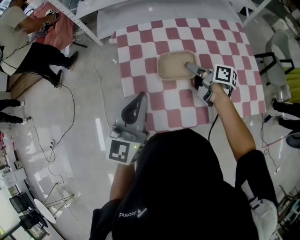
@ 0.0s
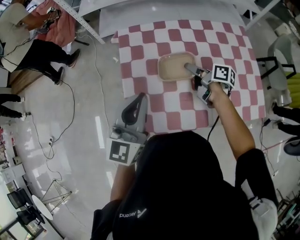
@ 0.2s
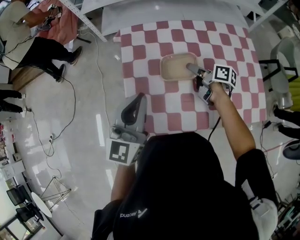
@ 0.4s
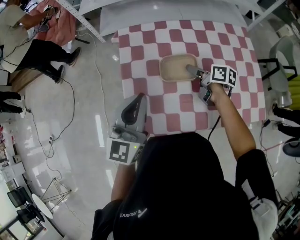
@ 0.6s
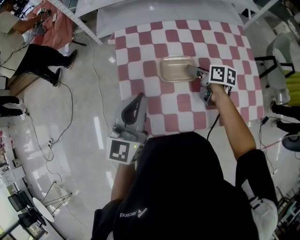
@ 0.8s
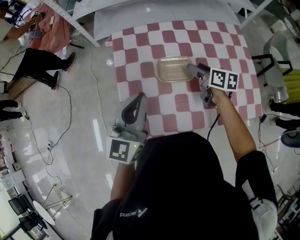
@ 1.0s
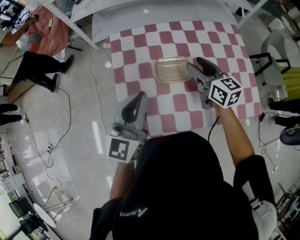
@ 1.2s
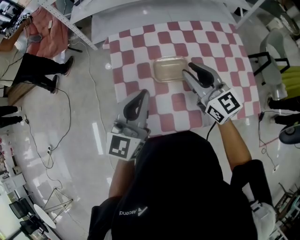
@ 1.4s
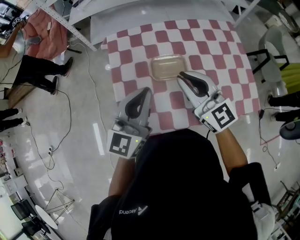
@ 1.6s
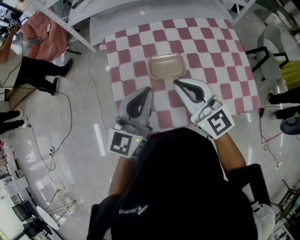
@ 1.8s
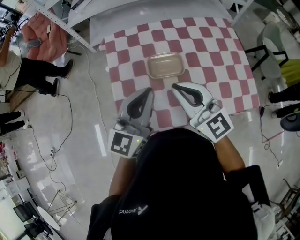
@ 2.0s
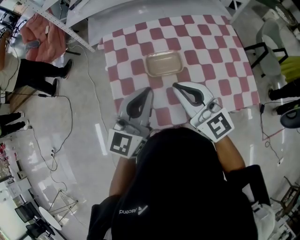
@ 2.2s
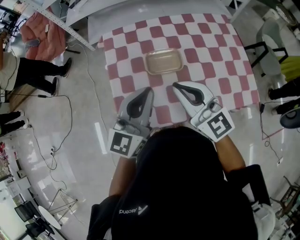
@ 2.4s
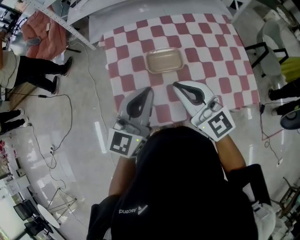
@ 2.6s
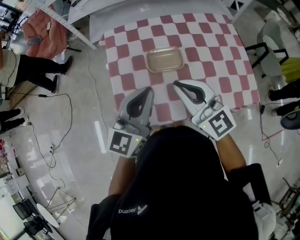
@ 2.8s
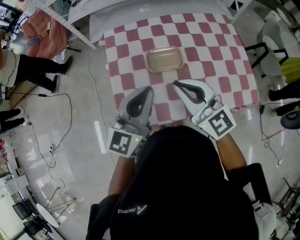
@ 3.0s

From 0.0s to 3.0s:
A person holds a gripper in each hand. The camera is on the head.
From 0.0s to 1.6s: The right gripper travels upward and backward by some 20 cm, rotates around the line of its fingers by approximately 70 degrees, counterclockwise from behind, and closes up, while the left gripper shifts about 5 cm to the right.
From 1.6s to 3.0s: The right gripper moves backward, some 5 cm.

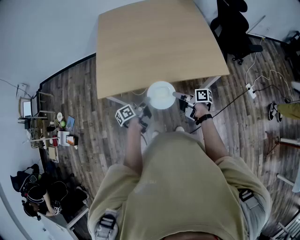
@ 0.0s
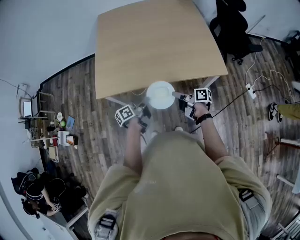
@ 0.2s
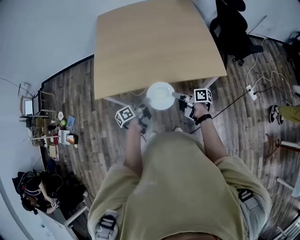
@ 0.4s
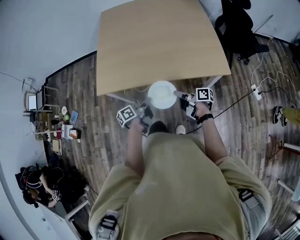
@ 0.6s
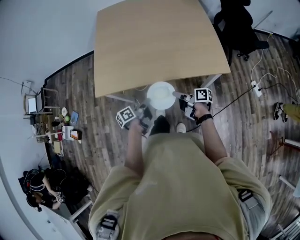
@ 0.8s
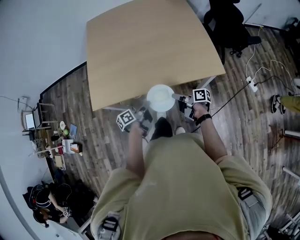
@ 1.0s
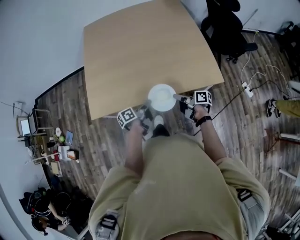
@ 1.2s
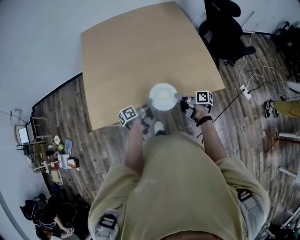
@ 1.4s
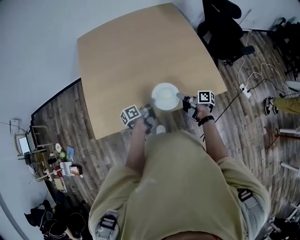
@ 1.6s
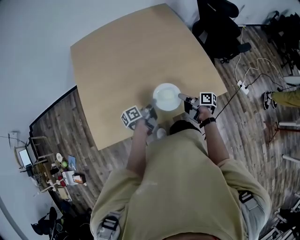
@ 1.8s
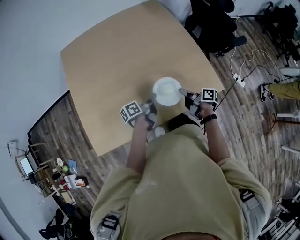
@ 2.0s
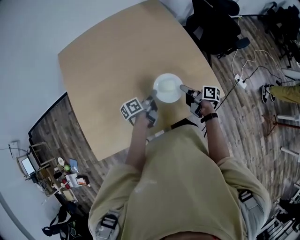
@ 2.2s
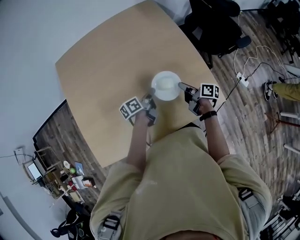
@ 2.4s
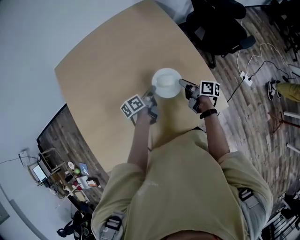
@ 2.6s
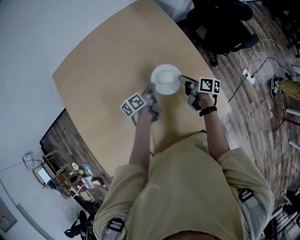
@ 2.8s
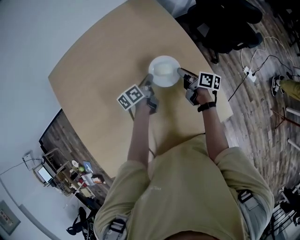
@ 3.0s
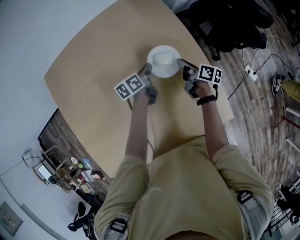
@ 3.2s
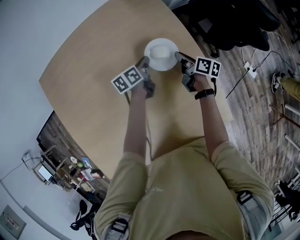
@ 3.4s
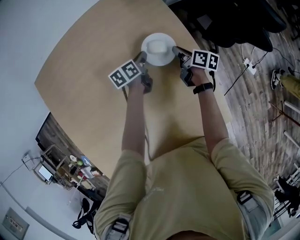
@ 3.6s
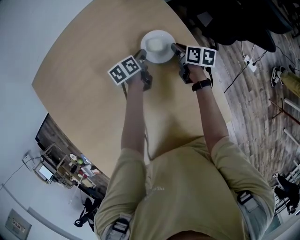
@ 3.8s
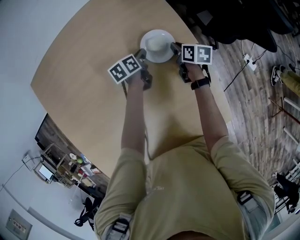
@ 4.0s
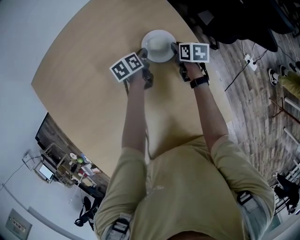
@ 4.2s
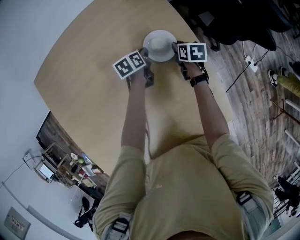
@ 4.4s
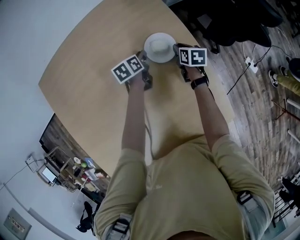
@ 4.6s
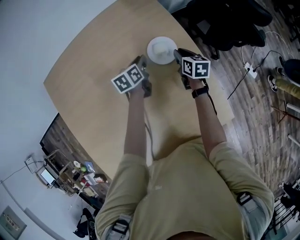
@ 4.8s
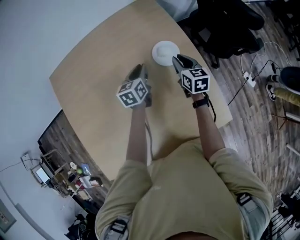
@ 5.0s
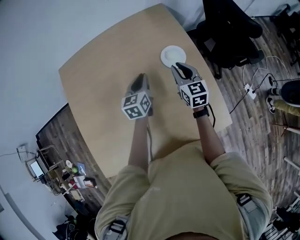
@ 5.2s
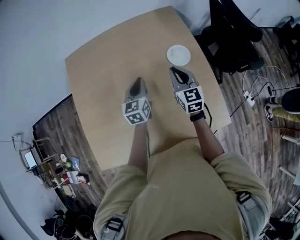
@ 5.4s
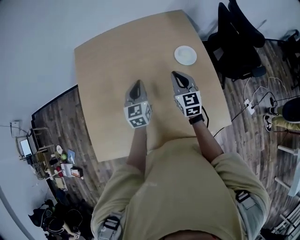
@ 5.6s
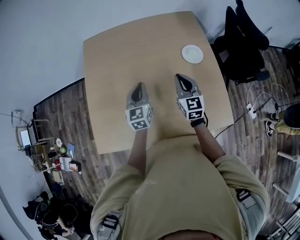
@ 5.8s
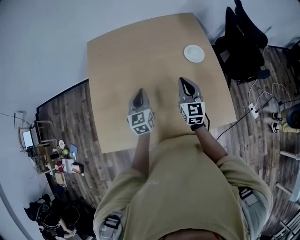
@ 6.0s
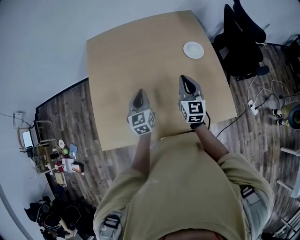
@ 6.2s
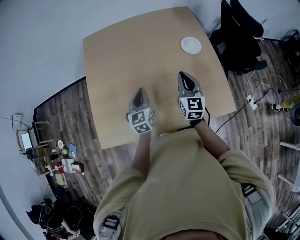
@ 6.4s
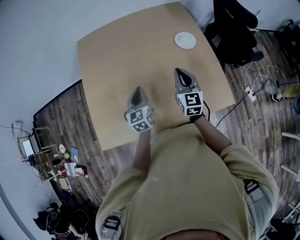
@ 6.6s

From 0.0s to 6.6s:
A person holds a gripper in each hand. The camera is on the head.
From 0.0s to 1.6s: The grippers both shift forward and to the right by about 20 cm.
From 1.6s to 3.2s: Both grippers are carried forward, about 50 cm. The right gripper swivels approximately 20 degrees. The left gripper rotates roughly 30 degrees.
From 3.2s to 5.0s: The two grippers go some 5 cm upward. The left gripper swivels roughly 30 degrees. The right gripper rolls counterclockwise, seen from behind, by approximately 40 degrees.
From 5.0s to 6.6s: The left gripper goes some 40 cm backward and to the left, and changes its angle by about 30 degrees. Meanwhile the right gripper travels backward, to the left and upward by about 35 cm, and rotates approximately 30 degrees.

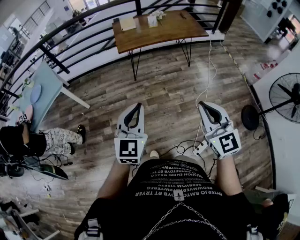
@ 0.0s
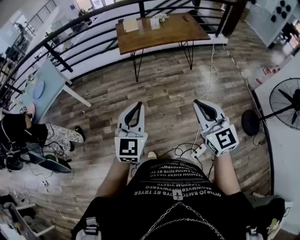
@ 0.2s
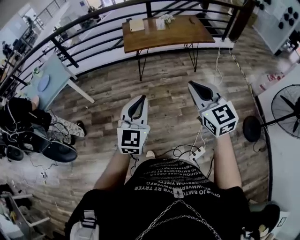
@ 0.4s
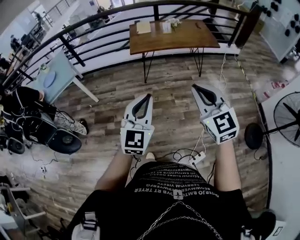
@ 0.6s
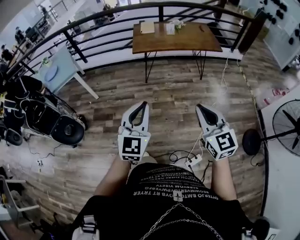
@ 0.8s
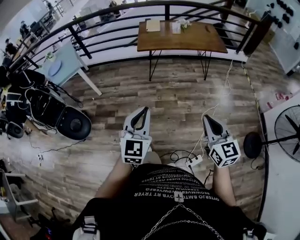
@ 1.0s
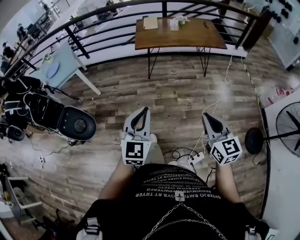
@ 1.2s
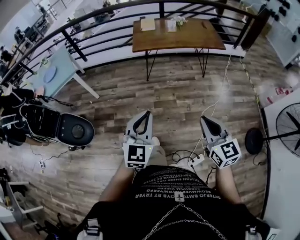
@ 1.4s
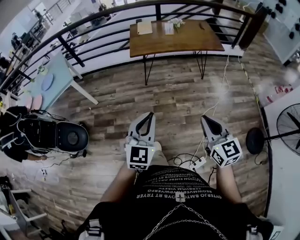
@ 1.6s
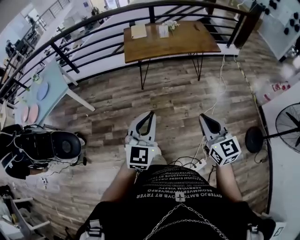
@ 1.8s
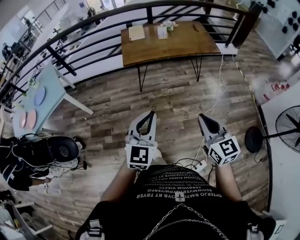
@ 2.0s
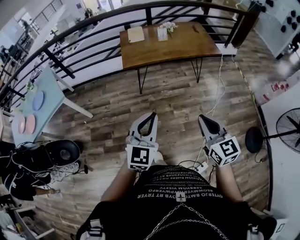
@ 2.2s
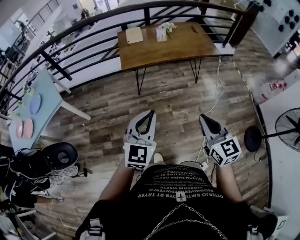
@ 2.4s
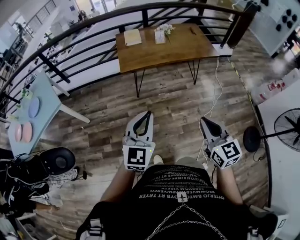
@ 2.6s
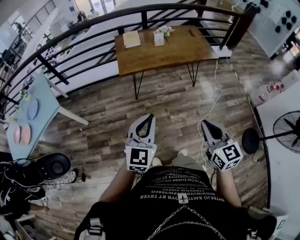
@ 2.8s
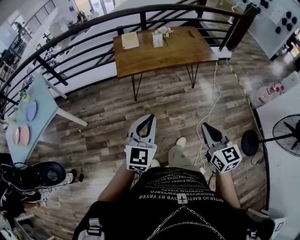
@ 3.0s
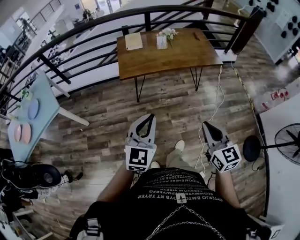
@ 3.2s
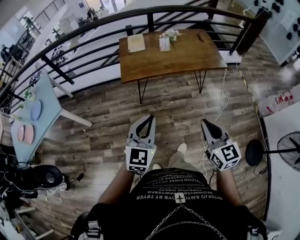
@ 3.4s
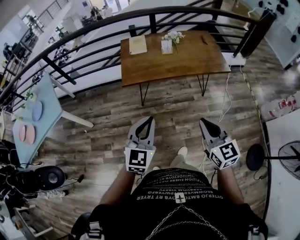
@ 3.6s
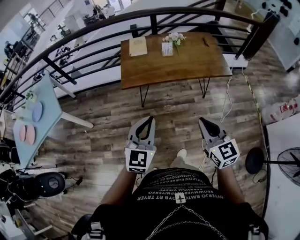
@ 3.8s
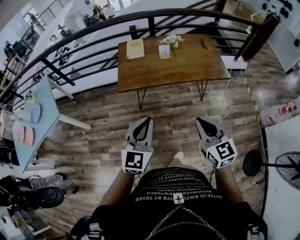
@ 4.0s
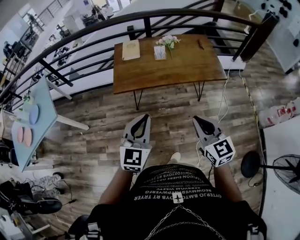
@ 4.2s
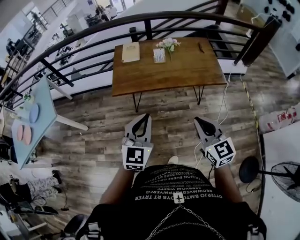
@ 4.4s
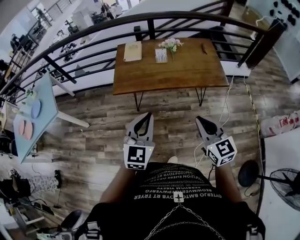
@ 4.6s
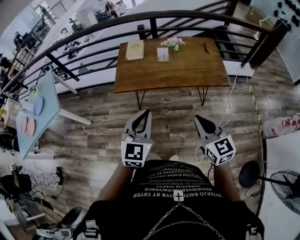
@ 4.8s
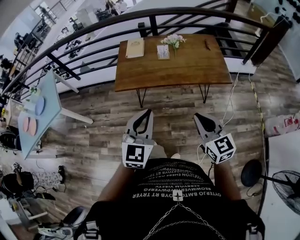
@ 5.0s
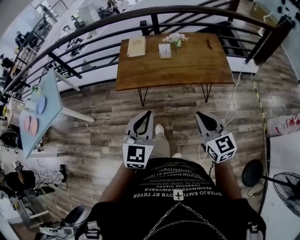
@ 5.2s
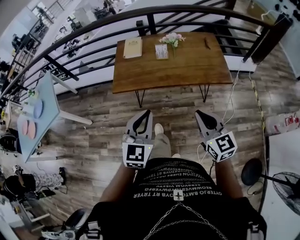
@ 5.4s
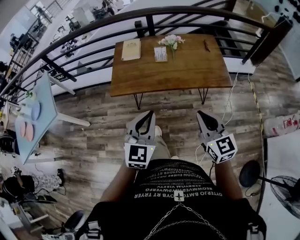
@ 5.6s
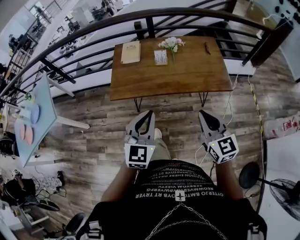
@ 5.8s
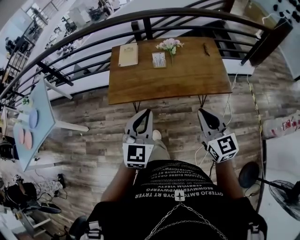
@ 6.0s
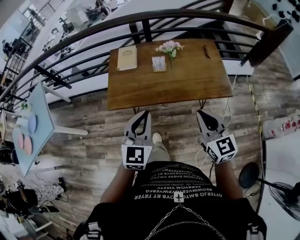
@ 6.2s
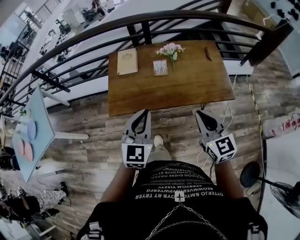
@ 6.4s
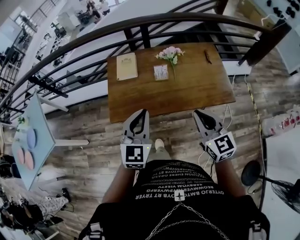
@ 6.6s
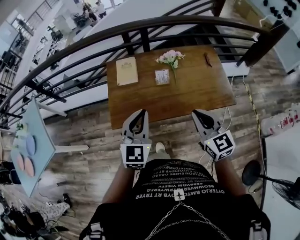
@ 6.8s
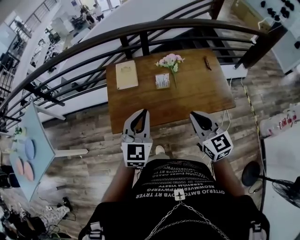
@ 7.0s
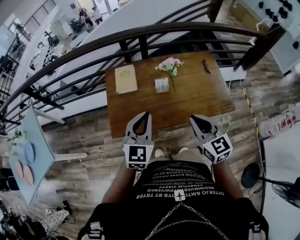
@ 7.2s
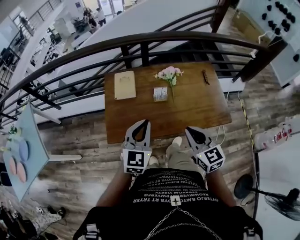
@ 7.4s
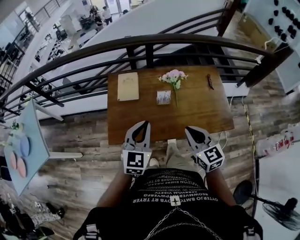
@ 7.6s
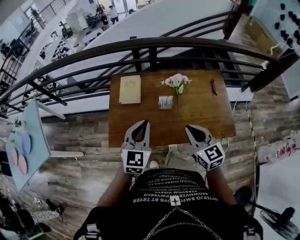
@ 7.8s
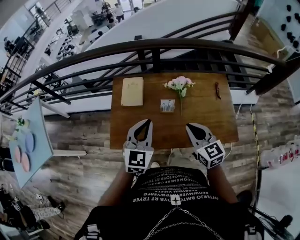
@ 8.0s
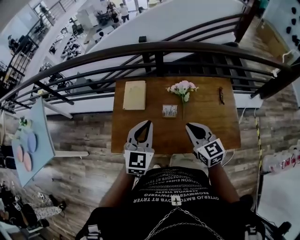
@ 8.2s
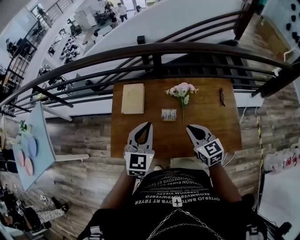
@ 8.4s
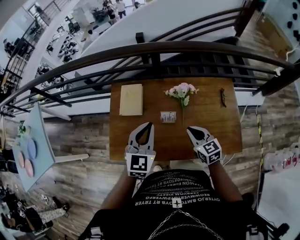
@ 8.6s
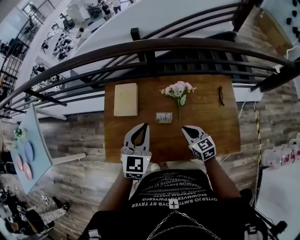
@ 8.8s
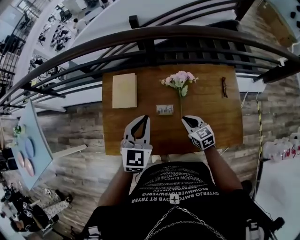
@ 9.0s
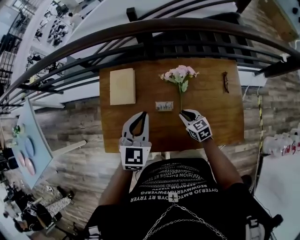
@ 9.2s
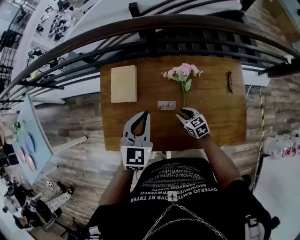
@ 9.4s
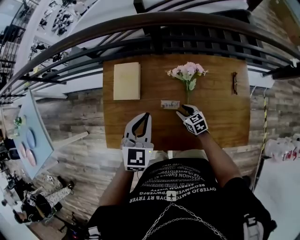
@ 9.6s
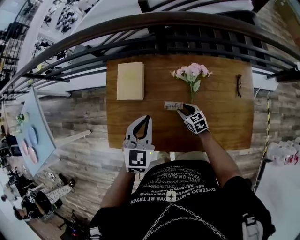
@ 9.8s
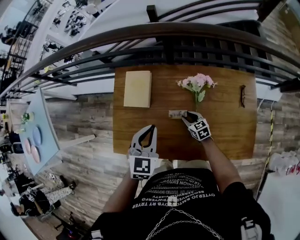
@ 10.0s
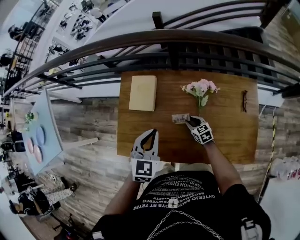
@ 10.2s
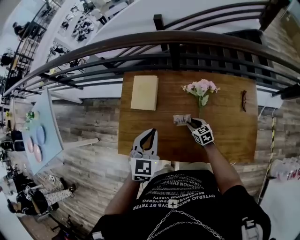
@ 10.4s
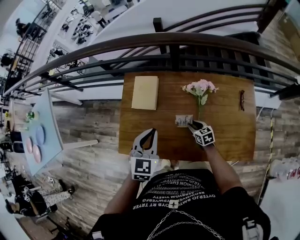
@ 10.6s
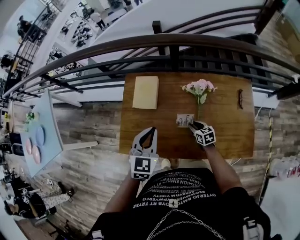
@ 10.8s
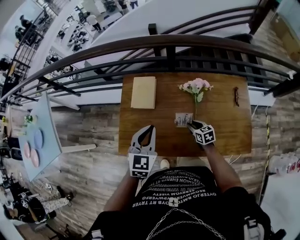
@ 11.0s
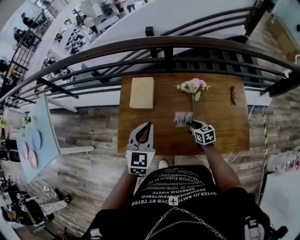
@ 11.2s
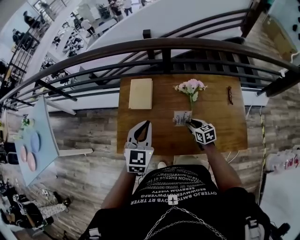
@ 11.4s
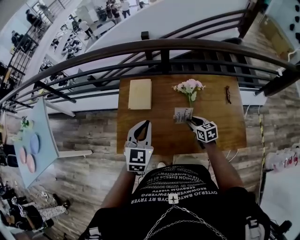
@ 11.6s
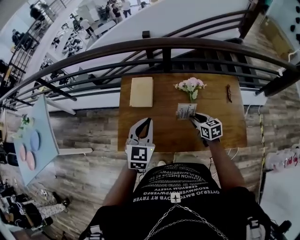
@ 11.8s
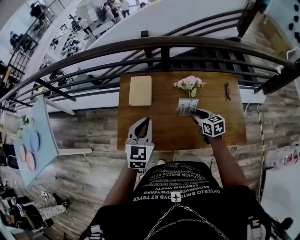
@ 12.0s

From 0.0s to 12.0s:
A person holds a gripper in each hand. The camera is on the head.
From 0.0s to 1.6s: The grippers both shift to the right by roughly 10 cm.
From 1.6s to 3.0s: The two grippers go some 20 cm forward.
From 3.0s to 4.4s: Both grippers travel together forward and to the right, about 25 cm.
From 4.4s to 6.0s: The two grippers go roughly 15 cm forward and to the right.
From 6.0s to 7.6s: The left gripper shifts approximately 25 cm forward. Meanwhile the right gripper shifts some 25 cm forward and to the left.
From 7.6s to 9.0s: The left gripper heads forward and to the right, covering some 20 cm. Meanwhile the right gripper is displaced downward and forward by about 30 cm, and rotates some 20 degrees.
From 9.0s to 10.4s: The left gripper shifts roughly 5 cm to the left; the right gripper is displaced downward and forward by about 15 cm, and opens.
From 10.4s to 12.0s: The right gripper travels upward by roughly 20 cm. The left gripper shifts some 5 cm upward.

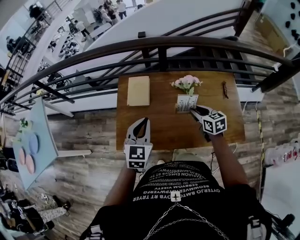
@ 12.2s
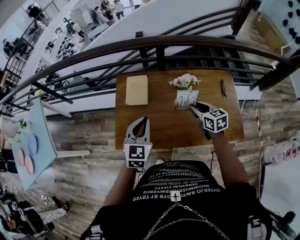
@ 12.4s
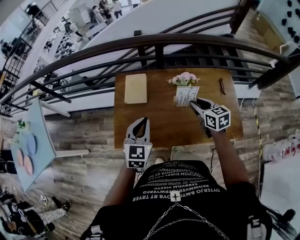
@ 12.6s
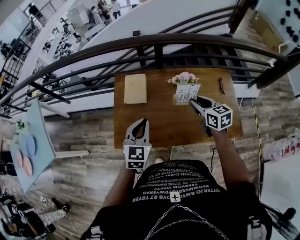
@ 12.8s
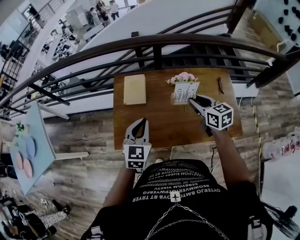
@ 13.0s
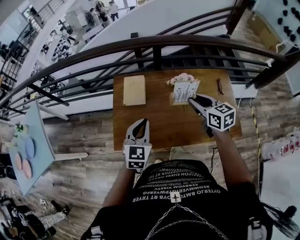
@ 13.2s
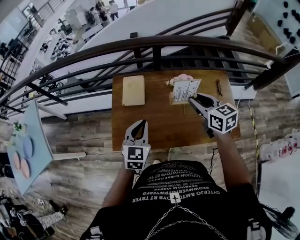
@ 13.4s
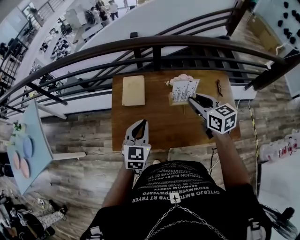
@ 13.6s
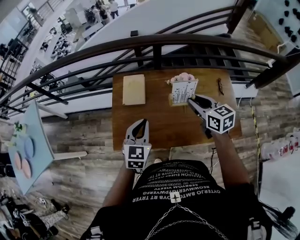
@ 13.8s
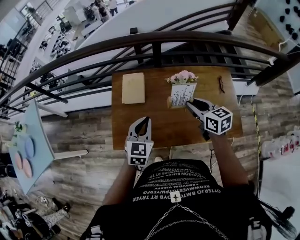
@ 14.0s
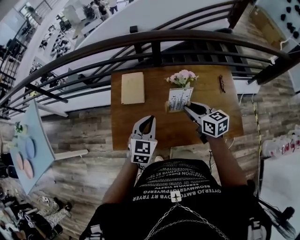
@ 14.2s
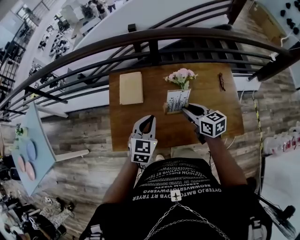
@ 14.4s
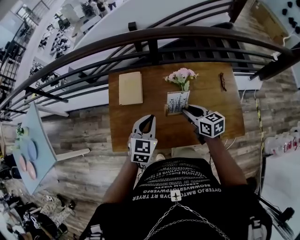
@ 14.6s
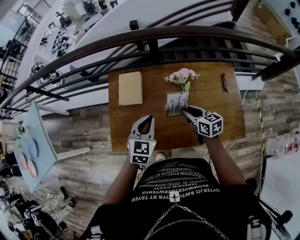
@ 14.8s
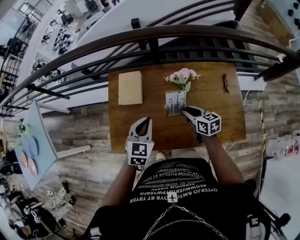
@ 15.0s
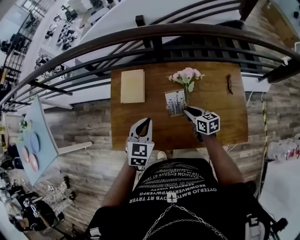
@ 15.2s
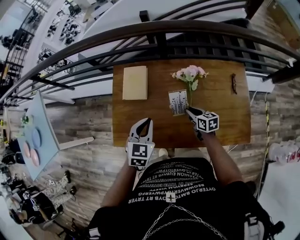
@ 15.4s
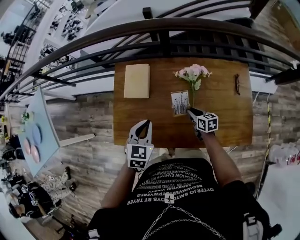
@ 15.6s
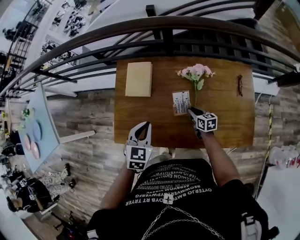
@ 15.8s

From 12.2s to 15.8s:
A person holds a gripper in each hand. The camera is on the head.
From 12.2s to 14.0s: The right gripper goes roughly 10 cm upward.
From 14.0s to 15.8s: The right gripper is displaced downward by roughly 30 cm. The left gripper moves downward, roughly 5 cm.
